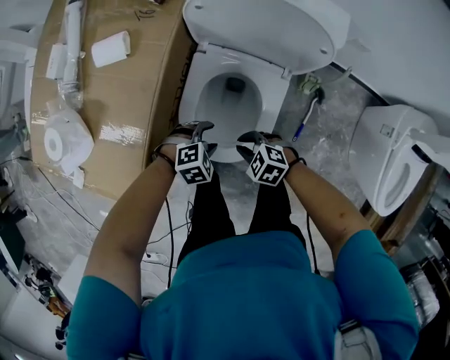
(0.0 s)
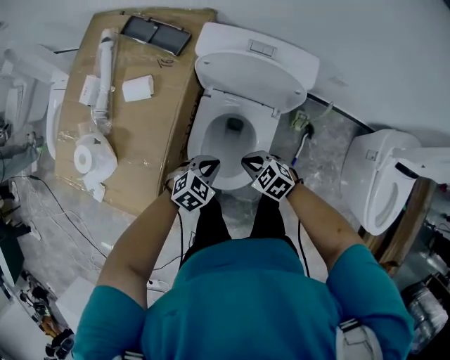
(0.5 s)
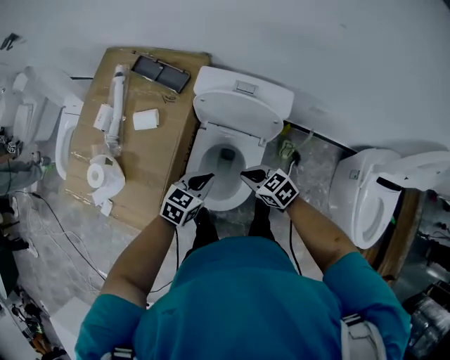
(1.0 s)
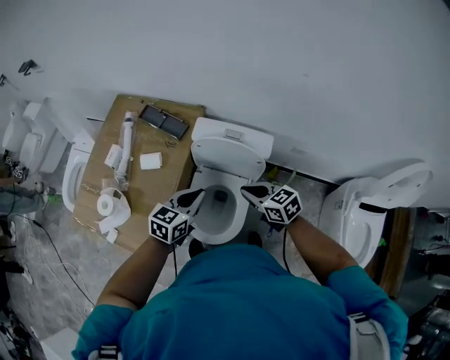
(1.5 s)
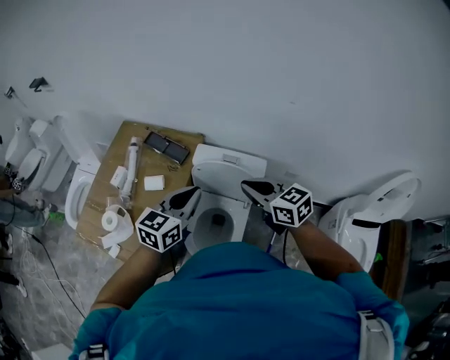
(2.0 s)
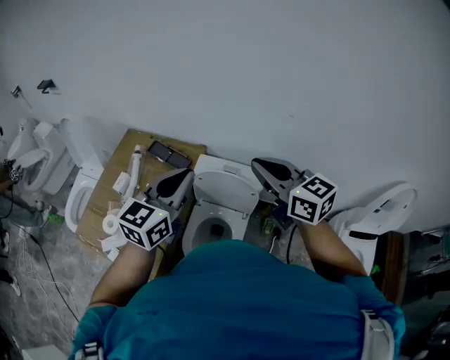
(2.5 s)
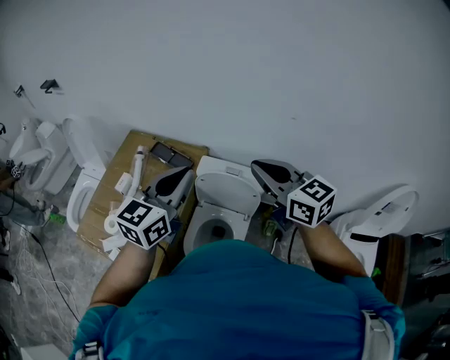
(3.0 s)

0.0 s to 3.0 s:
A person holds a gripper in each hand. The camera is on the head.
0.0 to 1.5 s: The grippers both shift upward by about 40 cm. The right gripper changes its angle by roughly 40 degrees. The left gripper tilts its fingers some 40 degrees upward, and closes its fingers.
1.5 to 3.0 s: Both grippers move upward, approximately 30 cm. The right gripper rotates approximately 30 degrees, while the left gripper turns by roughly 30 degrees.

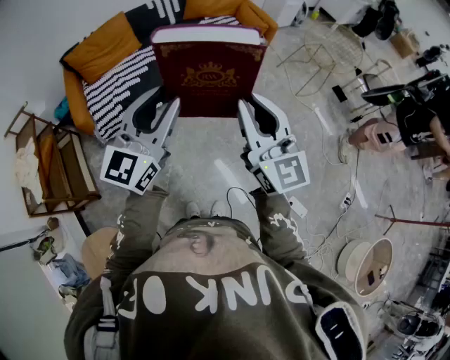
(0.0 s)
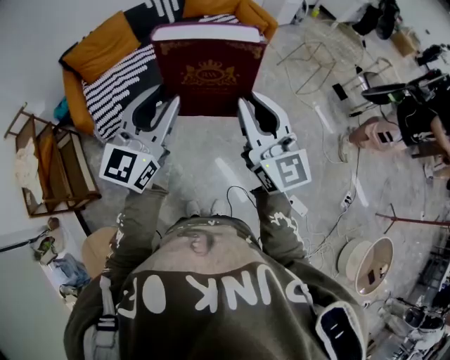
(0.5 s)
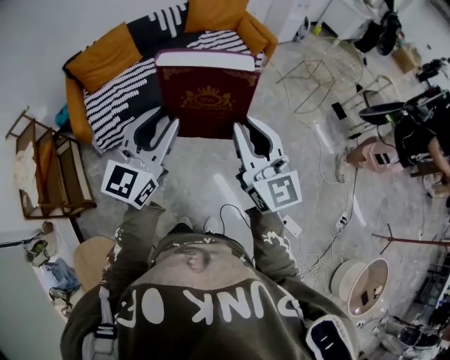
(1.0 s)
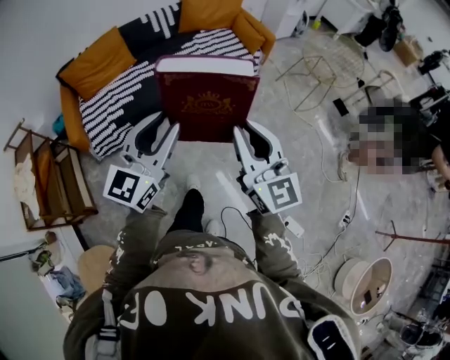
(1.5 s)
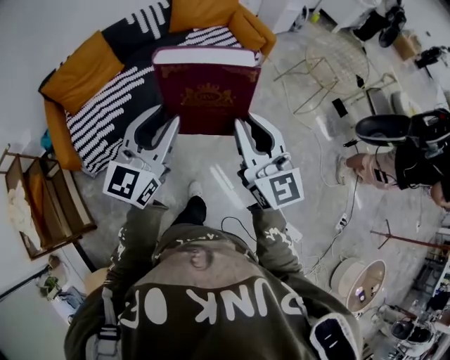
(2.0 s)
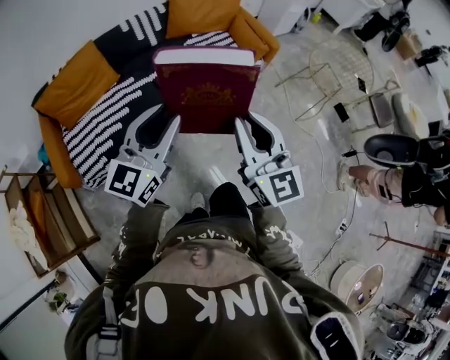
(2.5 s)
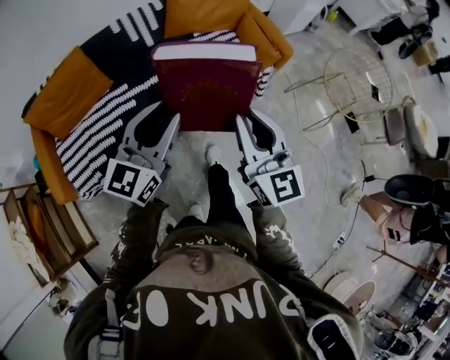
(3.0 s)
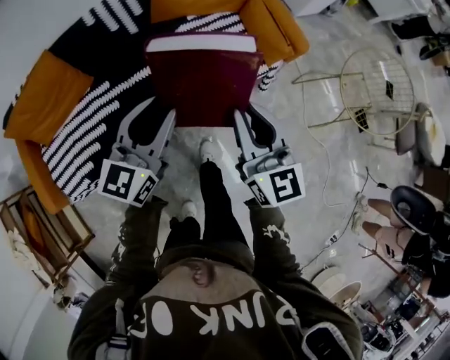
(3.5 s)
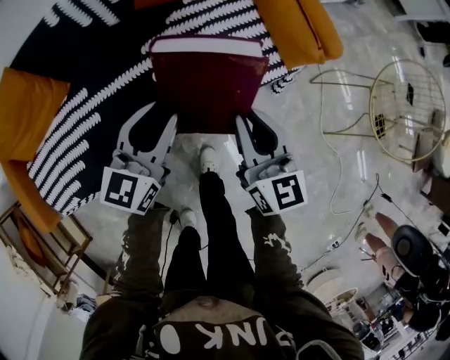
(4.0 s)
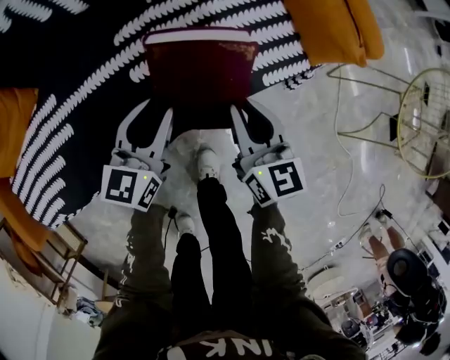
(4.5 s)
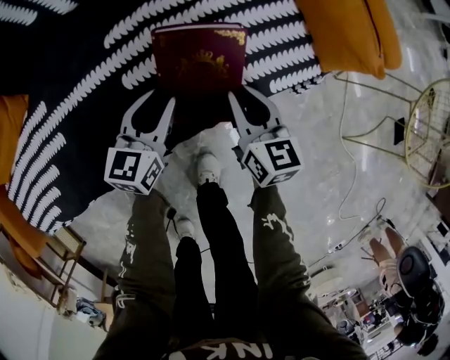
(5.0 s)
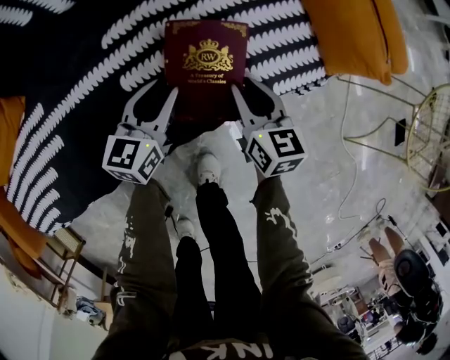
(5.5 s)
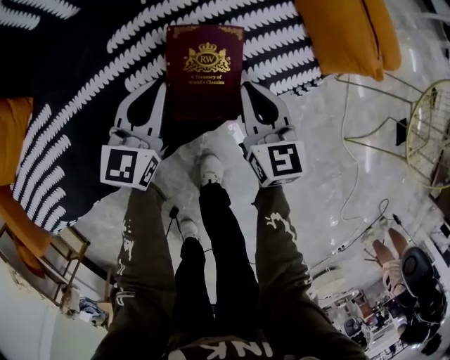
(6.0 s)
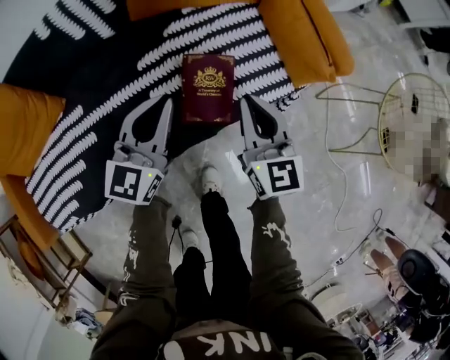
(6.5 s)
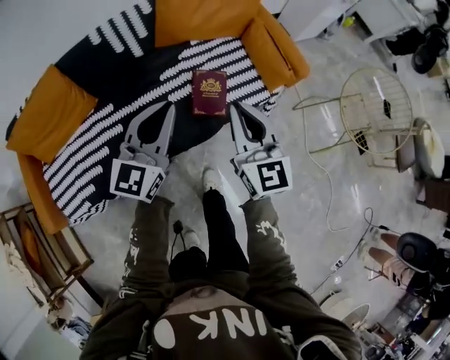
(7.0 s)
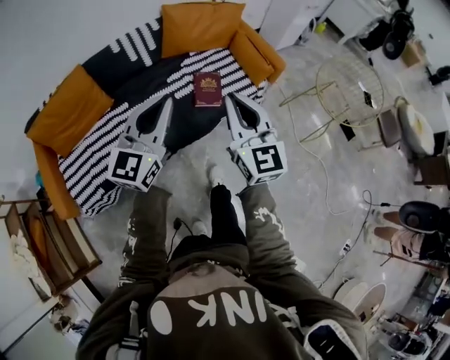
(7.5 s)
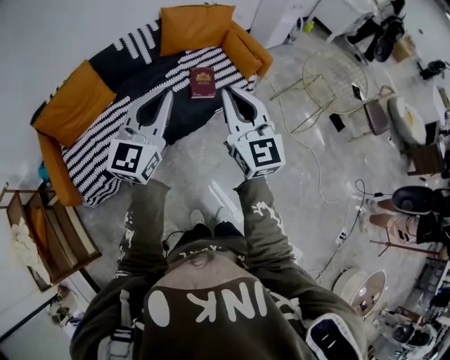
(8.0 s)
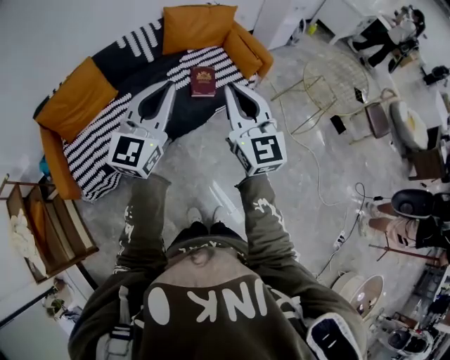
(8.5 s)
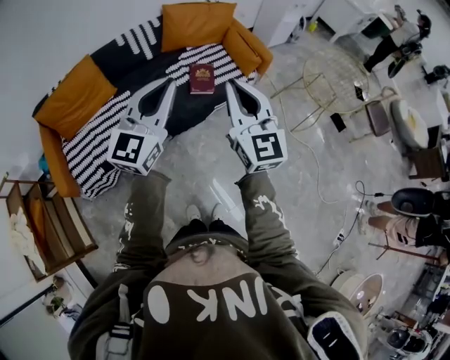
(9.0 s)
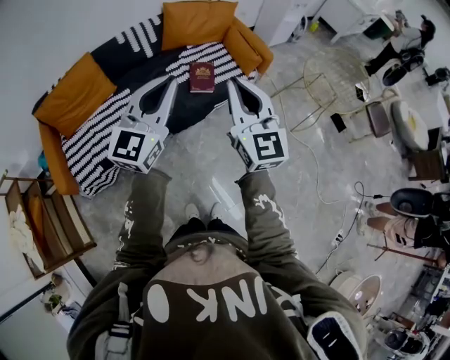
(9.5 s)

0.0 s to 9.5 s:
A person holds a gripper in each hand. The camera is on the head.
0.0 to 2.0 s: Both grippers travel together forward, approximately 25 cm.
2.0 to 4.0 s: The pair of grippers is taken forward, approximately 60 cm. Both grippers move downward, roughly 40 cm. The left gripper changes its angle by some 20 degrees. Meanwhile the right gripper changes its angle by about 30 degrees.
4.0 to 5.5 s: The grippers both shift downward by approximately 30 cm.
5.5 to 7.5 s: Both grippers travel together upward and backward, approximately 70 cm. The right gripper tilts its fingers some 30 degrees upward, and closes up. Meanwhile the left gripper changes its angle by some 40 degrees, and closes up.
7.5 to 9.5 s: The two grippers go roughly 15 cm backward and upward.

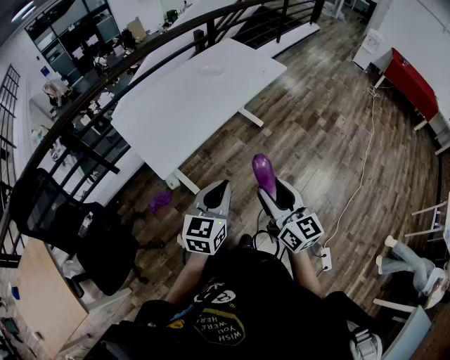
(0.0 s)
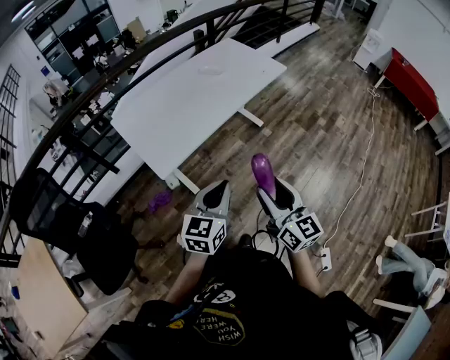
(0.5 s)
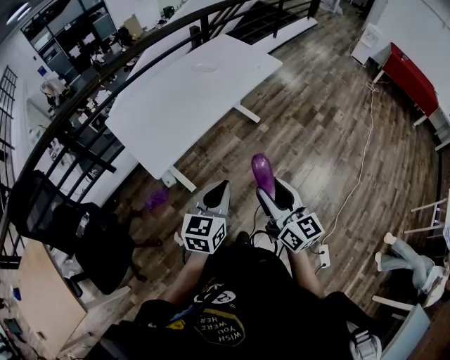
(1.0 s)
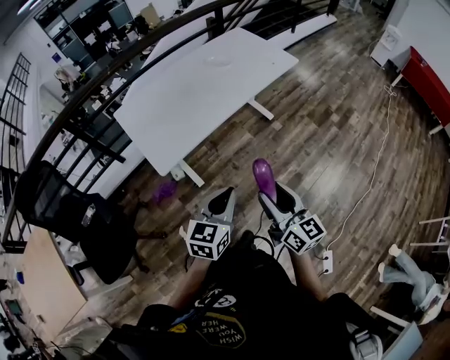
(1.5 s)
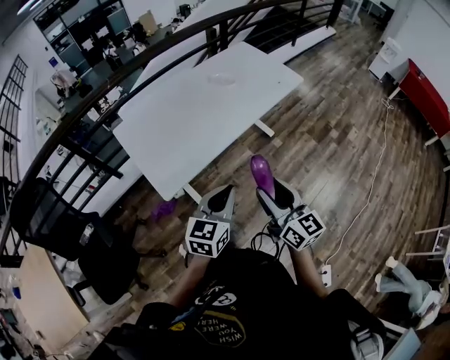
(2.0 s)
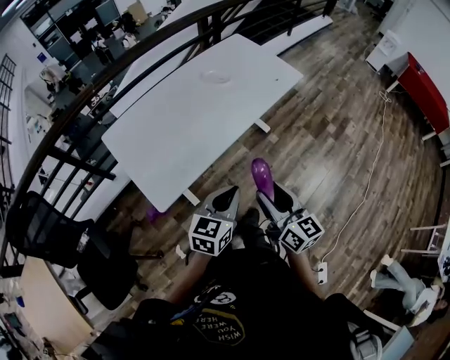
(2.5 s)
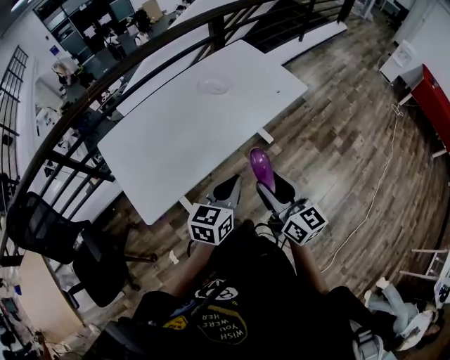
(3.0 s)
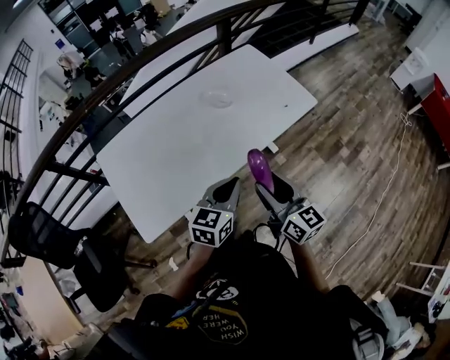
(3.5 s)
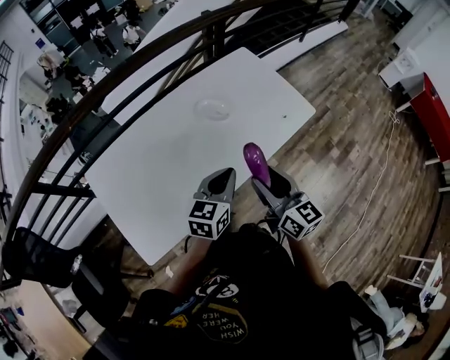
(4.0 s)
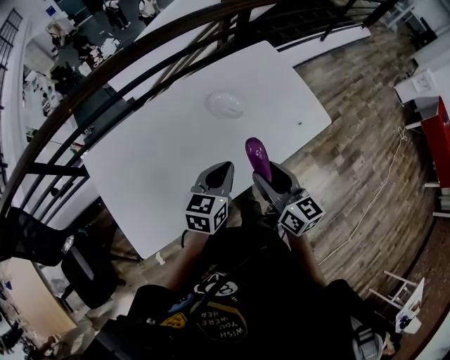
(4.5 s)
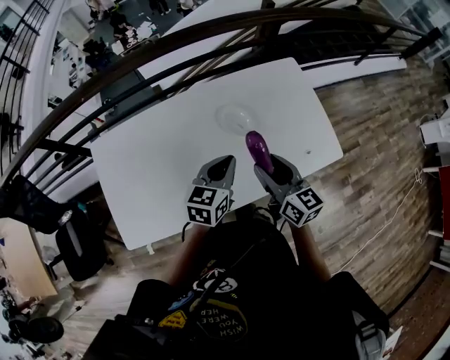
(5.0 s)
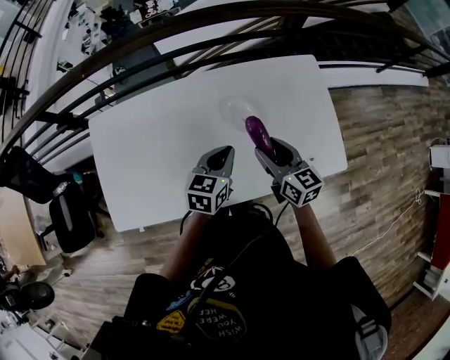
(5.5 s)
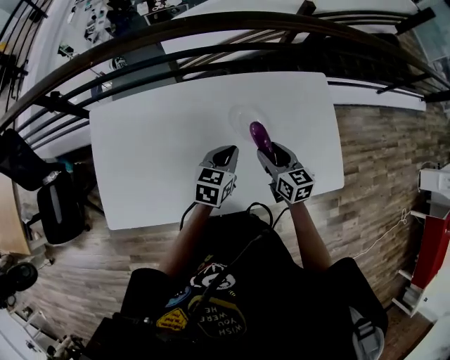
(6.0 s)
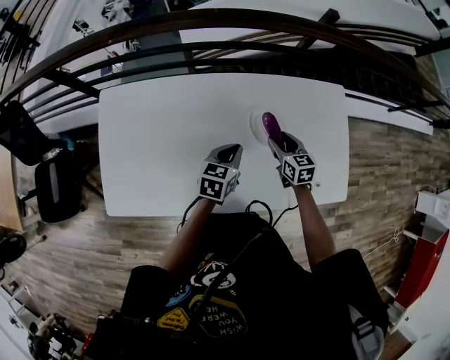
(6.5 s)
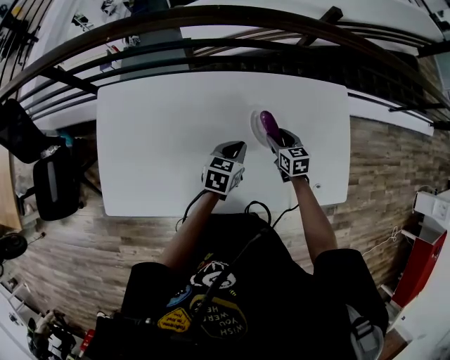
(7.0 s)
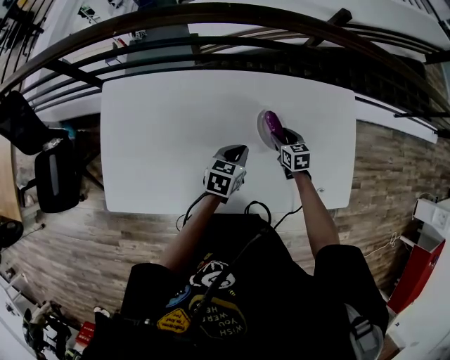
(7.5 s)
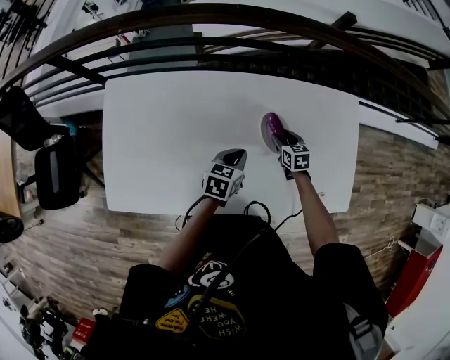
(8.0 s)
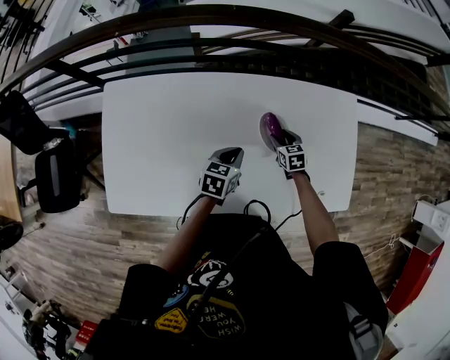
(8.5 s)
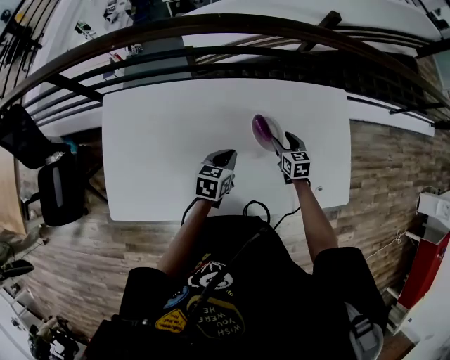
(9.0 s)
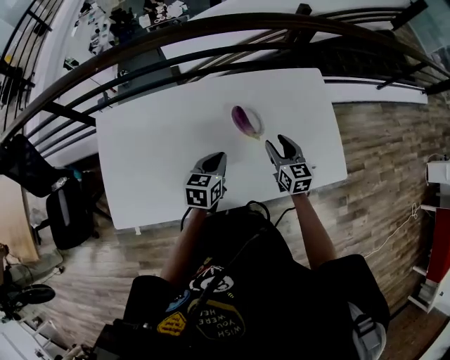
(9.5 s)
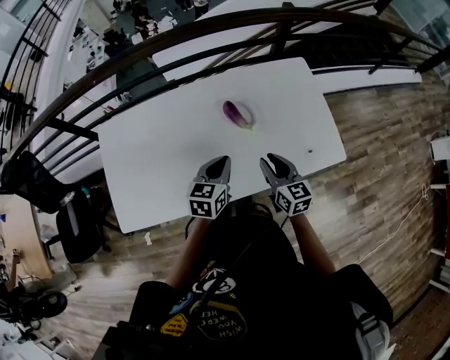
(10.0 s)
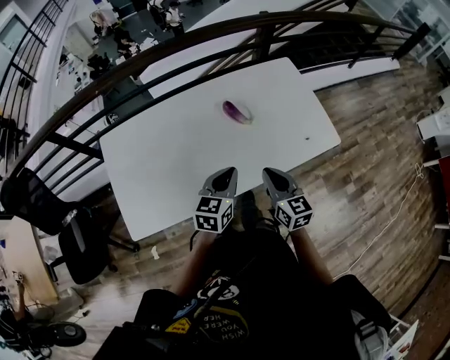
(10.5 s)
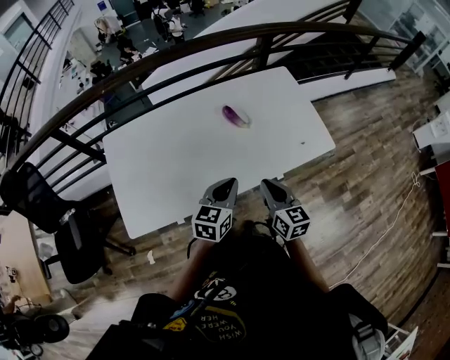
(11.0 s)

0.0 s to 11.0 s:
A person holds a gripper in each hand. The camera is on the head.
0.0 to 2.0 s: The grippers both shift forward by roughly 15 cm.
2.0 to 3.5 s: Both grippers move forward, roughly 40 cm.
3.5 to 5.5 s: The two grippers travel together, about 40 cm. The left gripper rotates approximately 30 degrees. The right gripper rotates approximately 30 degrees.
5.5 to 7.5 s: The left gripper shifts approximately 15 cm downward, to the left and forward. Meanwhile the right gripper shifts roughly 25 cm downward and forward, and rotates some 30 degrees.
7.5 to 9.0 s: The grippers move only a little.
9.0 to 11.0 s: The grippers both shift backward and upward by some 40 cm. The left gripper swivels some 30 degrees. Meanwhile the right gripper swivels roughly 30 degrees, and closes up.

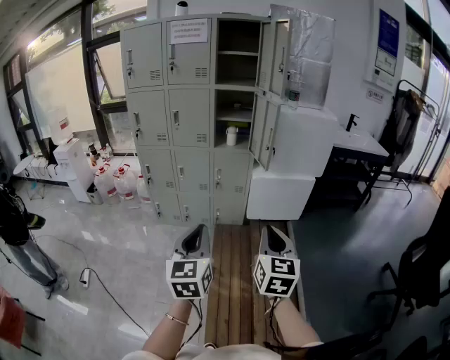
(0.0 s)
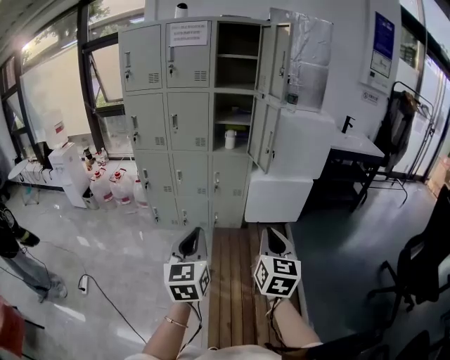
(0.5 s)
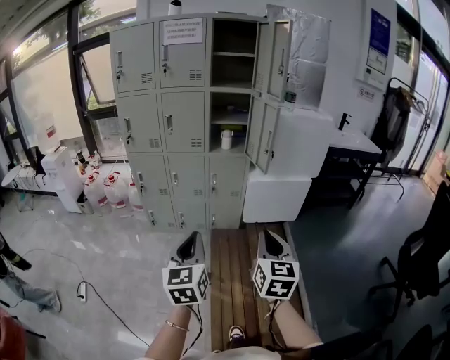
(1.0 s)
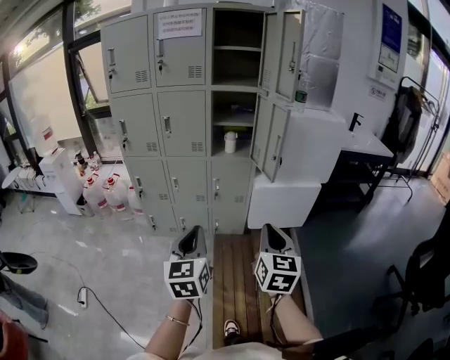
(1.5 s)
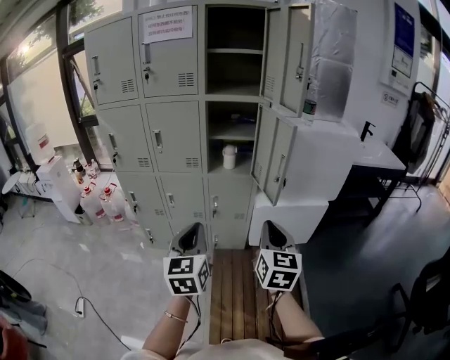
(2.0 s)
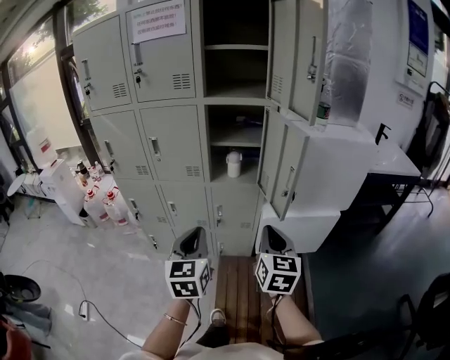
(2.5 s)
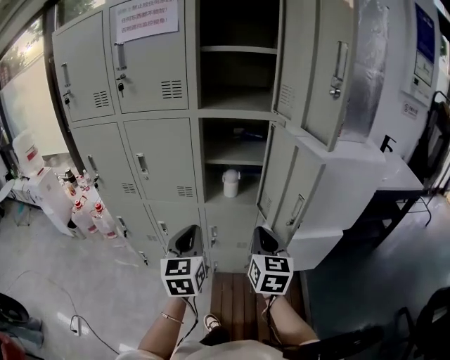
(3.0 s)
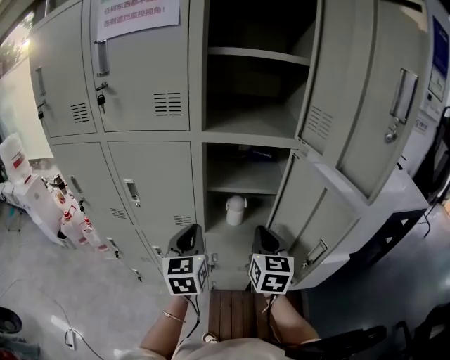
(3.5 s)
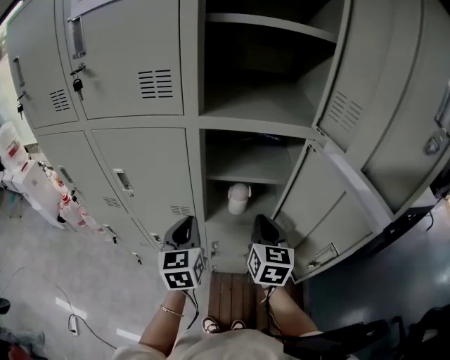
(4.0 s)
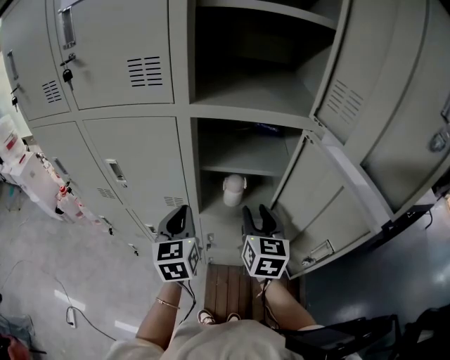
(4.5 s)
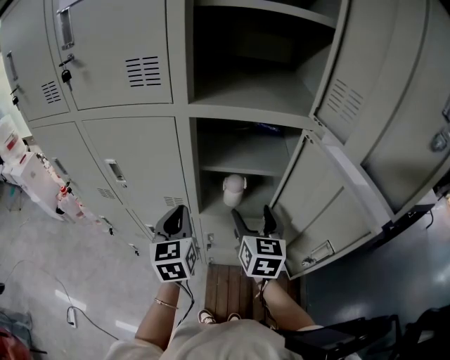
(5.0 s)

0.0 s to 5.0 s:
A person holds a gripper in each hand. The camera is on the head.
0.0 to 2.5 s: The two grippers travel together, forward, about 40 cm.
2.5 to 5.0 s: The two grippers go roughly 35 cm forward. The right gripper opens up.
